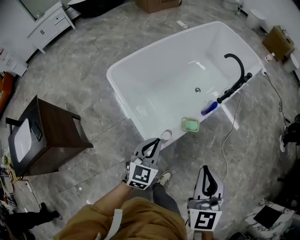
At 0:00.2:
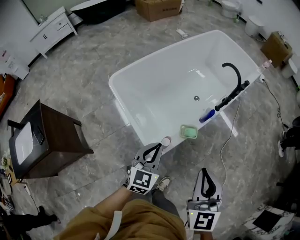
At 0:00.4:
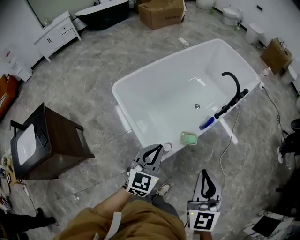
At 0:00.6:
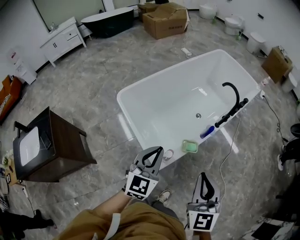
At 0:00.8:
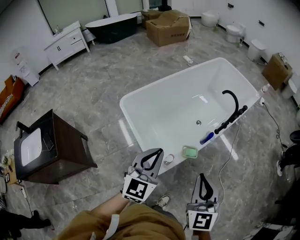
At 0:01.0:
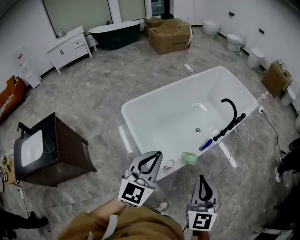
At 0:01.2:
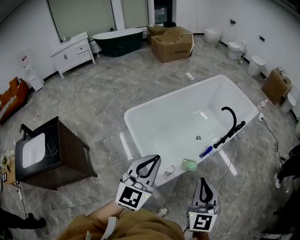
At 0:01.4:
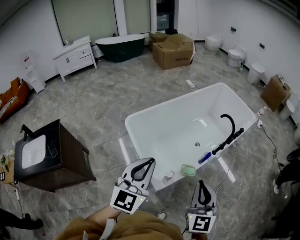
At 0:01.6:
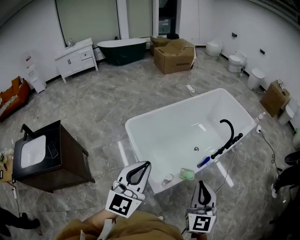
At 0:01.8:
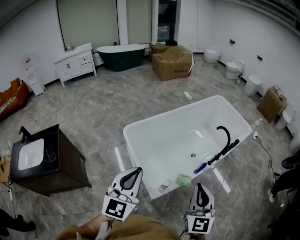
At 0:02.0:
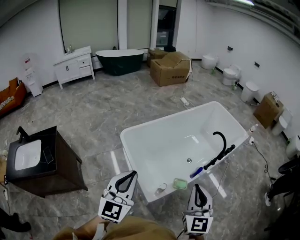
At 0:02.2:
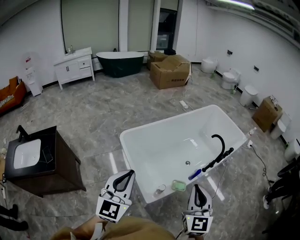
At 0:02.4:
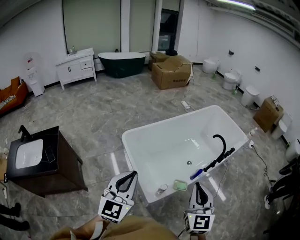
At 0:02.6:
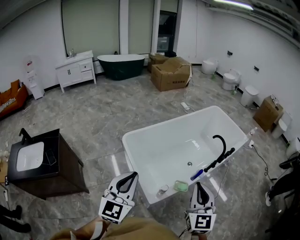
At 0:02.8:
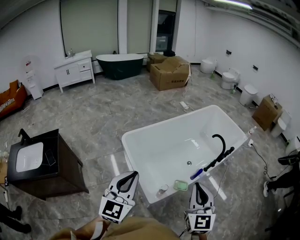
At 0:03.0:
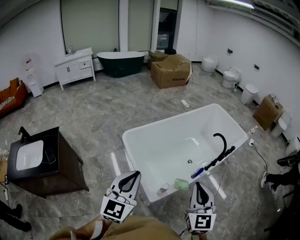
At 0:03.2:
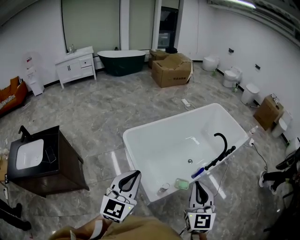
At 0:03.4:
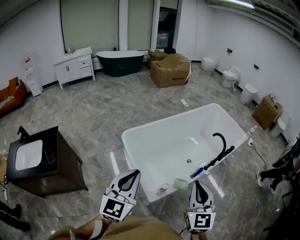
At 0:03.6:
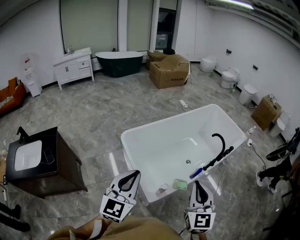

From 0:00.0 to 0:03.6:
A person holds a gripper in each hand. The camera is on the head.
From 0:00.0 to 0:01.8: The left gripper moves upward, roughly 30 cm, and changes its angle by roughly 30 degrees. The right gripper goes approximately 10 cm upward.
From 0:01.8 to 0:03.6: The grippers make only small movements.

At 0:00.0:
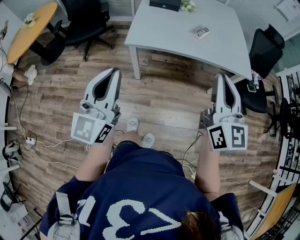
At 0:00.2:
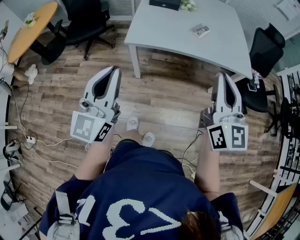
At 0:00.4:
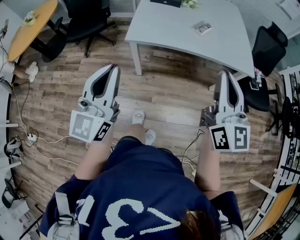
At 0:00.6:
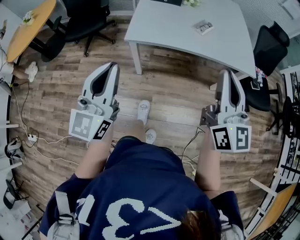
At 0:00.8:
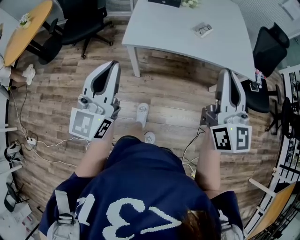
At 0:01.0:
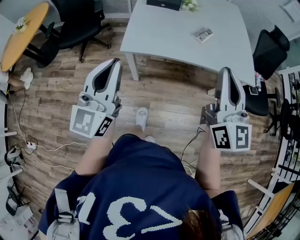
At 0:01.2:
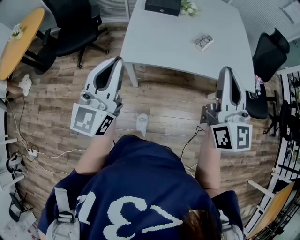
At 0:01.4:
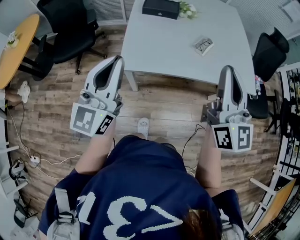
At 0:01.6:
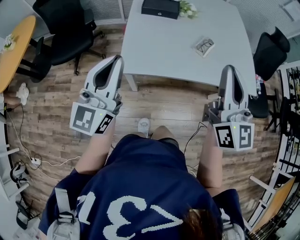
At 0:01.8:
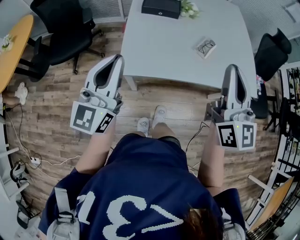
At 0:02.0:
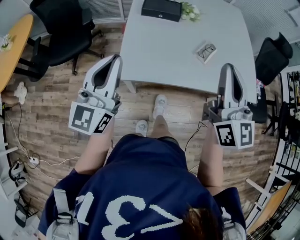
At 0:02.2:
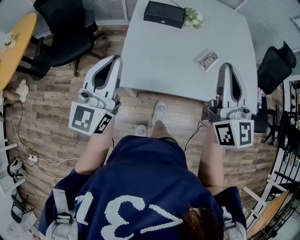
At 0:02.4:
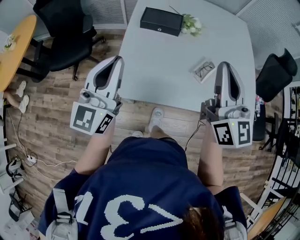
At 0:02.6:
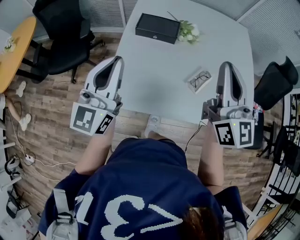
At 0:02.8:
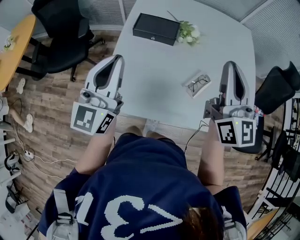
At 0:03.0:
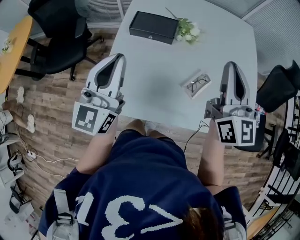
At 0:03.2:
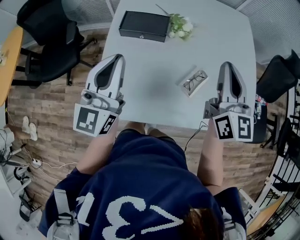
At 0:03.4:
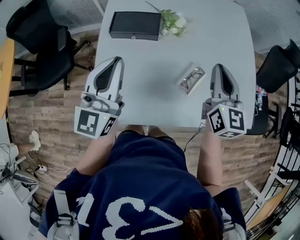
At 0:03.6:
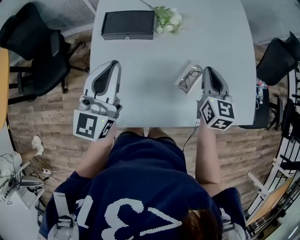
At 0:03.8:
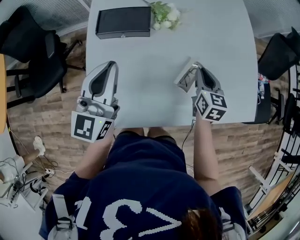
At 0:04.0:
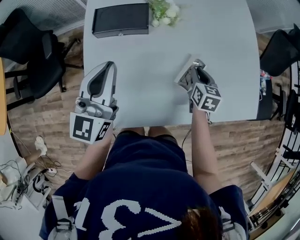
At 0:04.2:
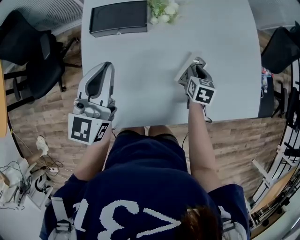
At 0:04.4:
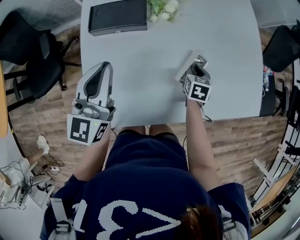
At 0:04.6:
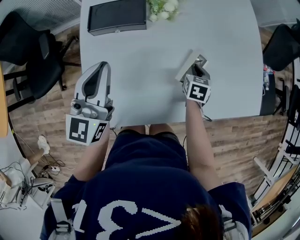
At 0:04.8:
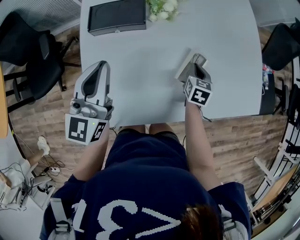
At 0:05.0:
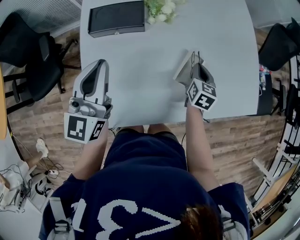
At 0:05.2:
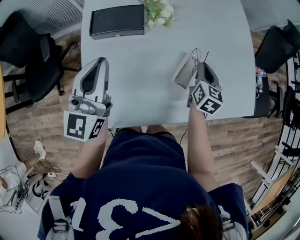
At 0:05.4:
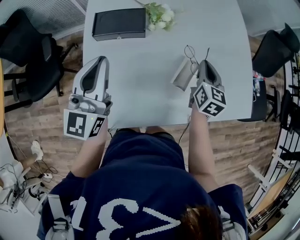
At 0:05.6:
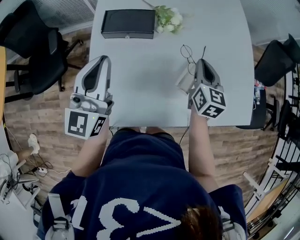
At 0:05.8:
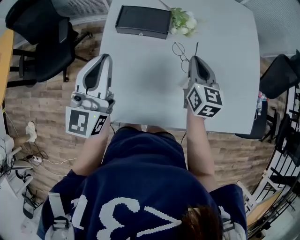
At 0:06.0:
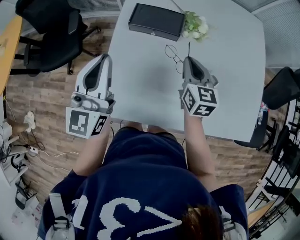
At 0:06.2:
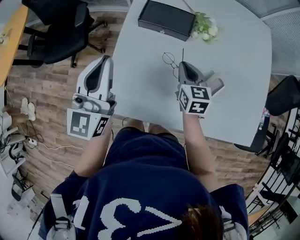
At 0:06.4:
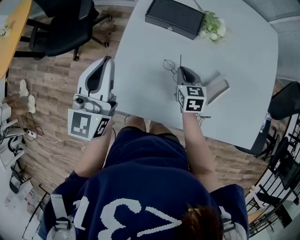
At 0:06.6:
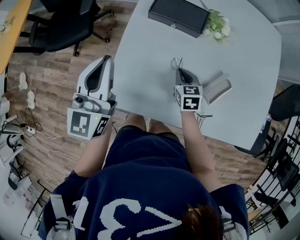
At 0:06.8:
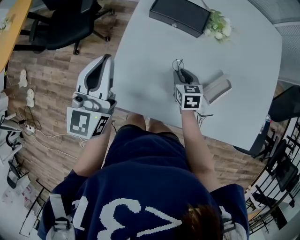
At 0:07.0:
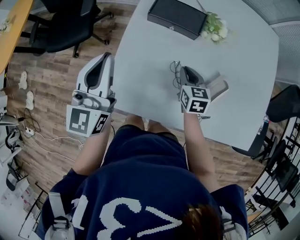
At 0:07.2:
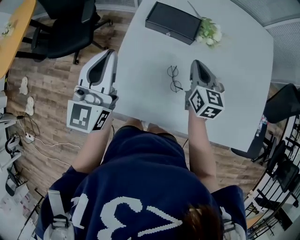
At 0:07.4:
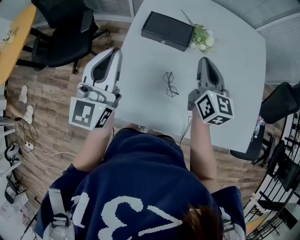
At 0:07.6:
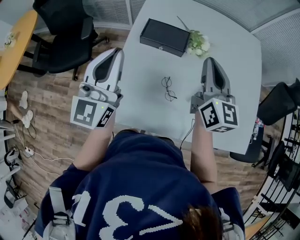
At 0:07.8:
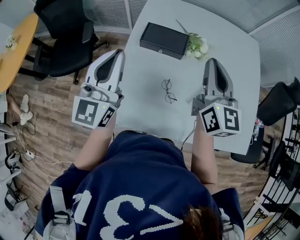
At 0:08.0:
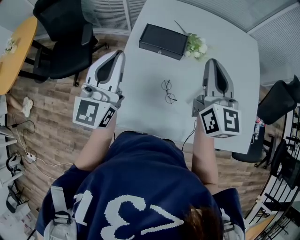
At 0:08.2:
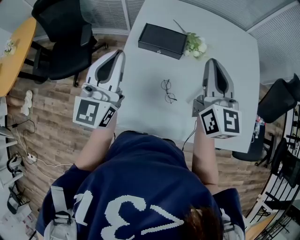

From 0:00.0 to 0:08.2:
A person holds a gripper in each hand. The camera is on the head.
From 0:00.0 to 0:01.6: The grippers both shift forward by roughly 25 cm.
From 0:01.6 to 0:03.2: The grippers both shift forward by roughly 30 cm.
From 0:03.2 to 0:05.0: The left gripper goes about 10 cm forward and downward, while the right gripper travels downward by roughly 30 cm, tilts its fingers some 40 degrees downward, and opens, then closes once more.
From 0:05.0 to 0:06.6: The right gripper reaches roughly 15 cm upward, then returns, and rotates roughly 40 degrees, while the left gripper changes place by some 15 cm, and swivels roughly 20 degrees.
From 0:06.6 to 0:08.2: The right gripper is displaced upward by some 35 cm, and points its fingers roughly 50 degrees further upward. The left gripper travels upward by roughly 10 cm.

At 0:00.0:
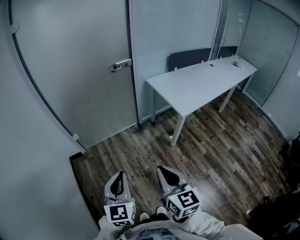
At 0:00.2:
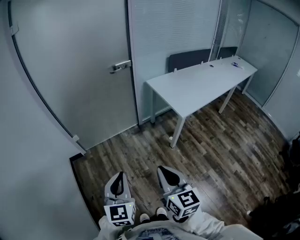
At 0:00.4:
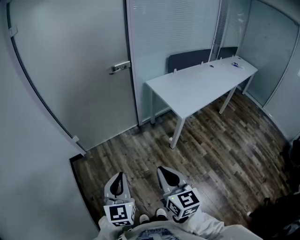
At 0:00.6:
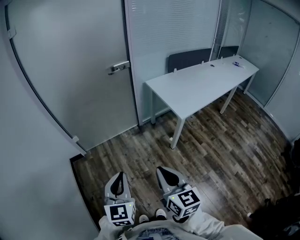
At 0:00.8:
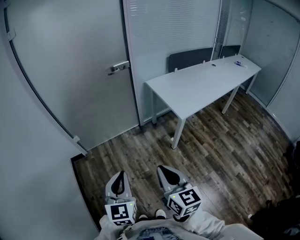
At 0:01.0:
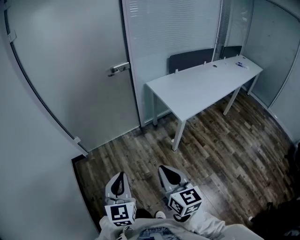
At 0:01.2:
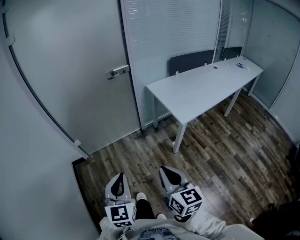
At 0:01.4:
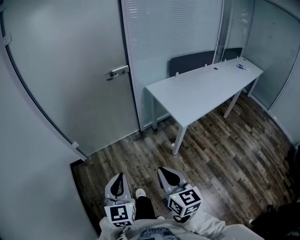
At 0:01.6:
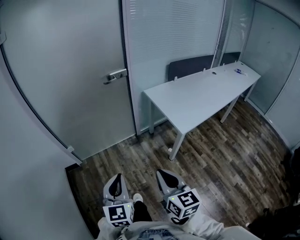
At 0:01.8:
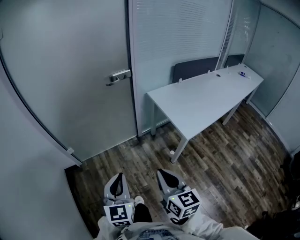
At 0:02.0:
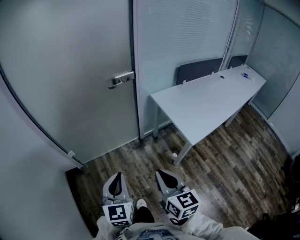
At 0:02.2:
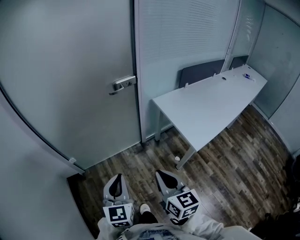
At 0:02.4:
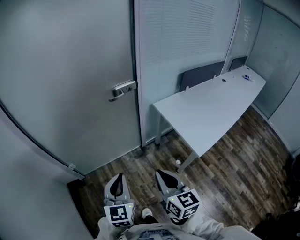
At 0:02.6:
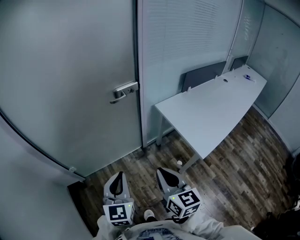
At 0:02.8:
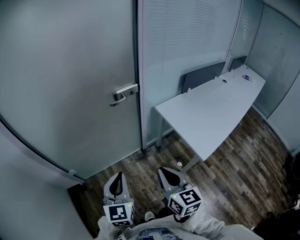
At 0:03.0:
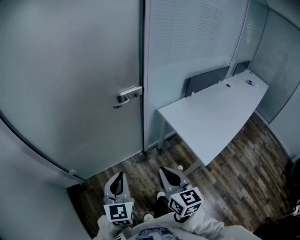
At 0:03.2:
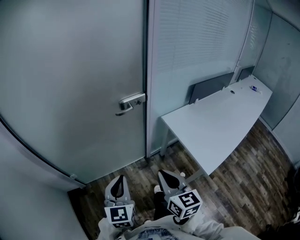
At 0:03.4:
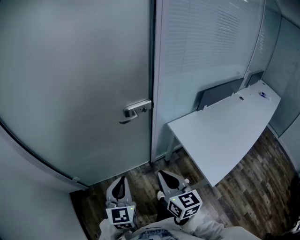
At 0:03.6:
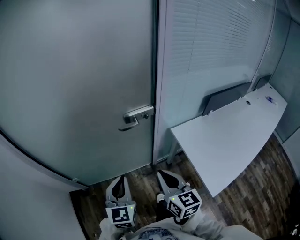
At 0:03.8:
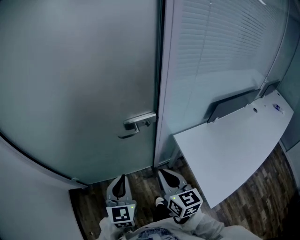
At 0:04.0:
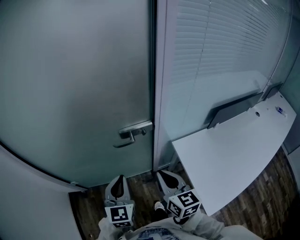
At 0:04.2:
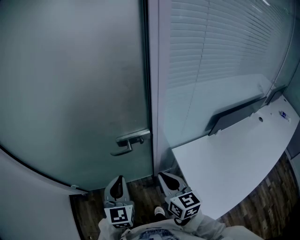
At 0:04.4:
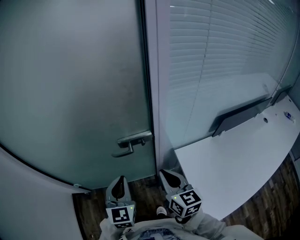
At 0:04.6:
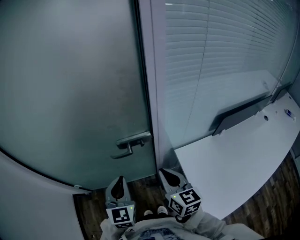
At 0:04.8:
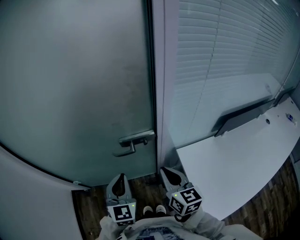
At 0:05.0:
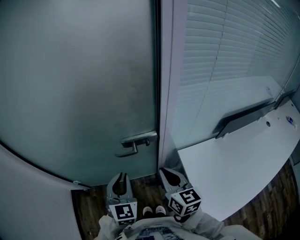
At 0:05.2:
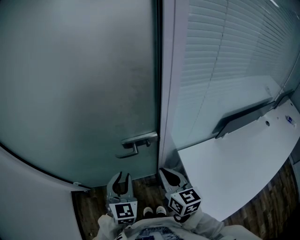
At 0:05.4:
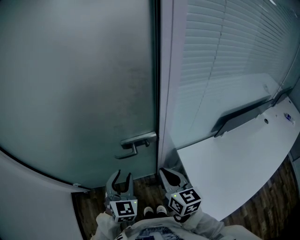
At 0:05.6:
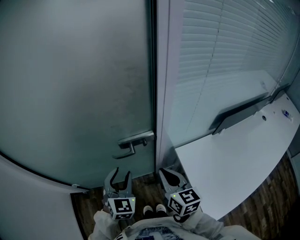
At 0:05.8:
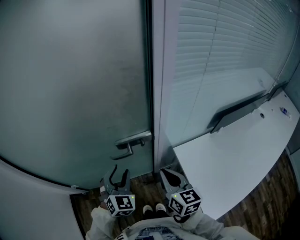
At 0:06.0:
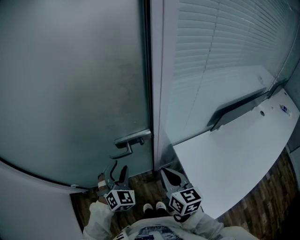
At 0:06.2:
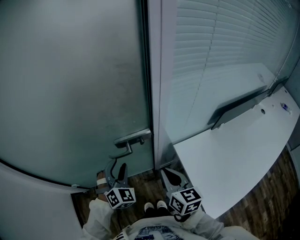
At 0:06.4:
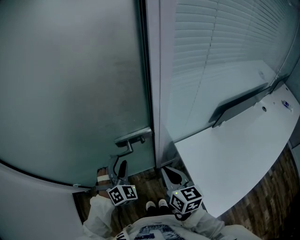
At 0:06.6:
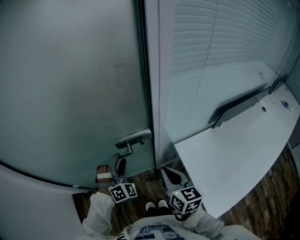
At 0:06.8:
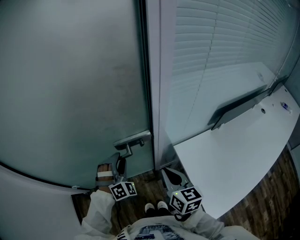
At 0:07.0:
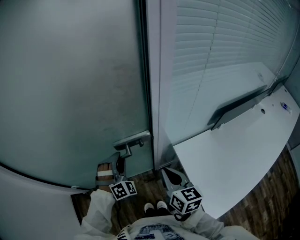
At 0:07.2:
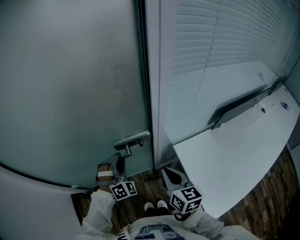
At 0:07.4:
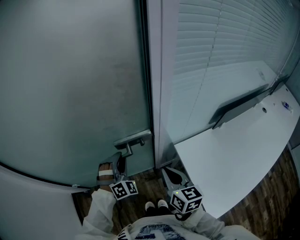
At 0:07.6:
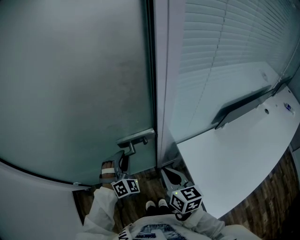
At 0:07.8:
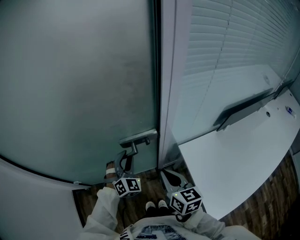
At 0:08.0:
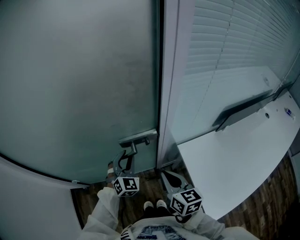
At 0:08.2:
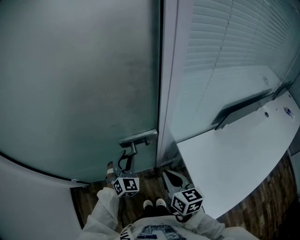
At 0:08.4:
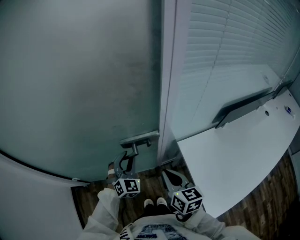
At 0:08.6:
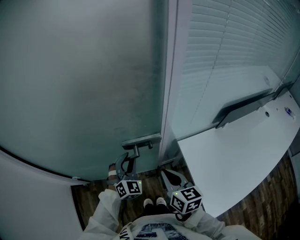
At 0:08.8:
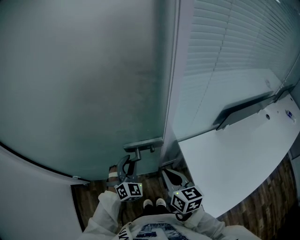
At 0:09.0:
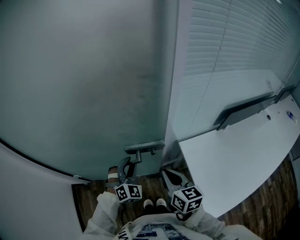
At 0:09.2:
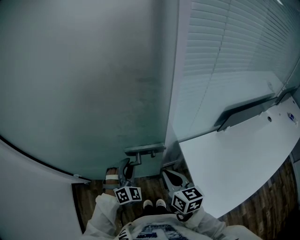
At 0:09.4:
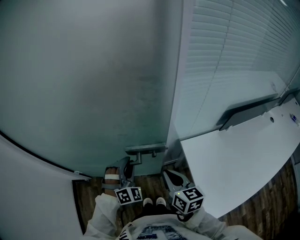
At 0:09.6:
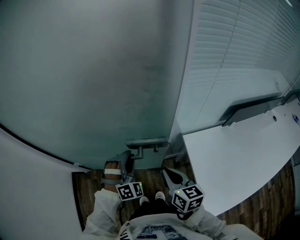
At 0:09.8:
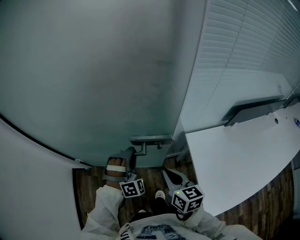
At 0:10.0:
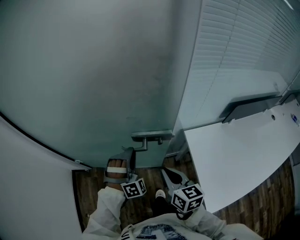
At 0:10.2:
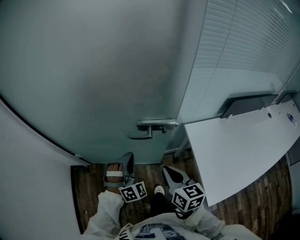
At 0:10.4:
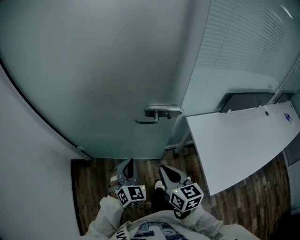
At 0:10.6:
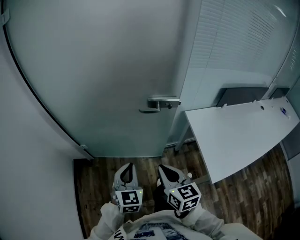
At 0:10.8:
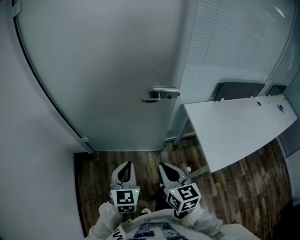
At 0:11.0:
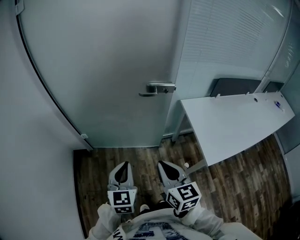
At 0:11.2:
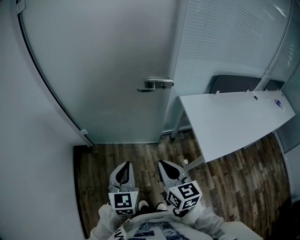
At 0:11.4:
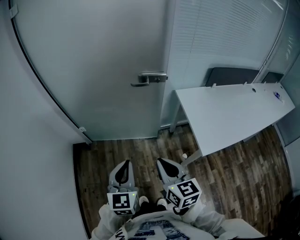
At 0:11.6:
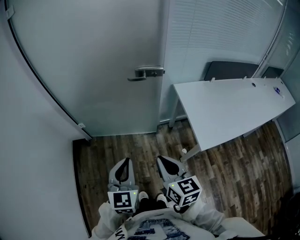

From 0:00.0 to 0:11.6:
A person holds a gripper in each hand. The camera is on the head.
From 0:00.0 to 0:01.4: The grippers both shift forward and to the right by about 10 cm.
From 0:01.4 to 0:02.8: Both grippers travel together forward, approximately 35 cm.
From 0:02.8 to 0:04.4: Both grippers travel together forward, approximately 30 cm.
From 0:04.4 to 0:05.8: The left gripper shifts roughly 5 cm forward, rotates about 30 degrees, and opens.
From 0:05.8 to 0:07.2: The left gripper shifts some 5 cm forward, and turns by about 40 degrees.
From 0:07.2 to 0:08.8: The left gripper heads backward, covering roughly 5 cm, and swivels approximately 20 degrees.
From 0:08.8 to 0:10.2: Both grippers travel together backward and to the left, approximately 10 cm. The left gripper rotates roughly 20 degrees, and closes up.
From 0:10.2 to 0:11.6: Both grippers travel together backward, about 35 cm. The left gripper twists some 60 degrees counterclockwise, seen from behind.
